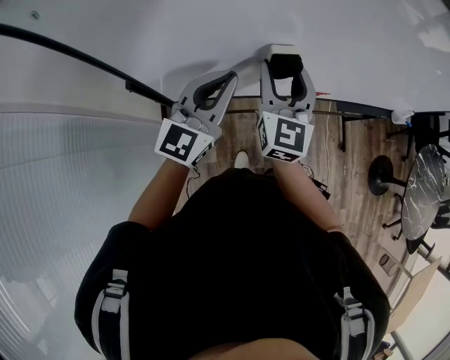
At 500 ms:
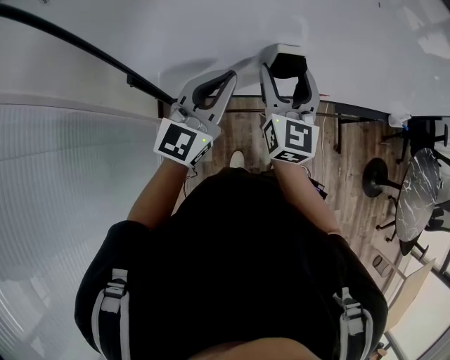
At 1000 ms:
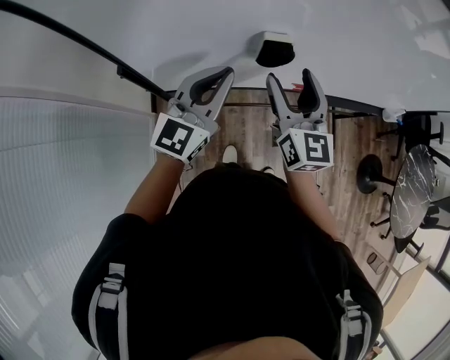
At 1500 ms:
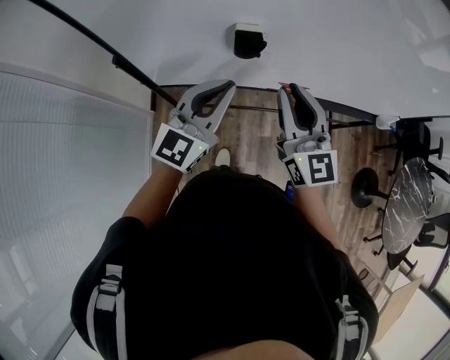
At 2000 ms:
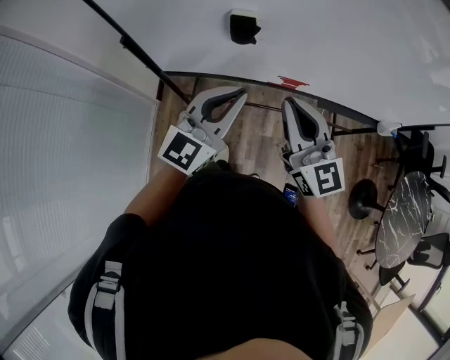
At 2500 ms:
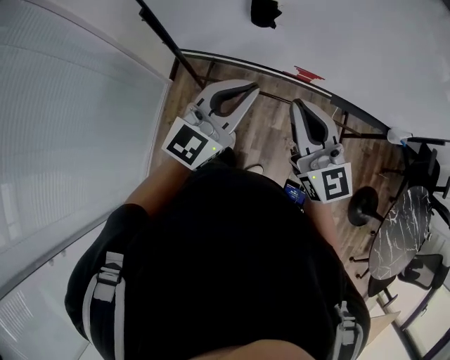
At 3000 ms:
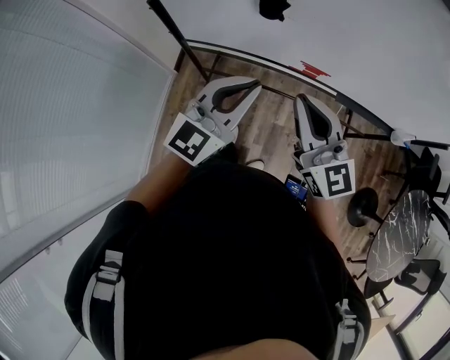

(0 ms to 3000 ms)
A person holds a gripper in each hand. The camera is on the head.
0 ms - 1500 ms: Both grippers move to the right and backward, roughly 15 cm. The right gripper swivels roughly 30 degrees, and closes its fingers.
1500 ms - 3000 ms: The left gripper moves backward and to the right, some 10 cm. The right gripper shifts some 10 cm backward, and swivels some 20 degrees.

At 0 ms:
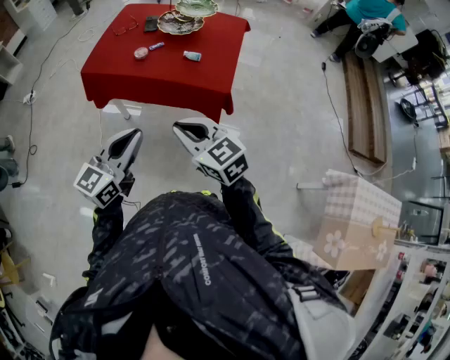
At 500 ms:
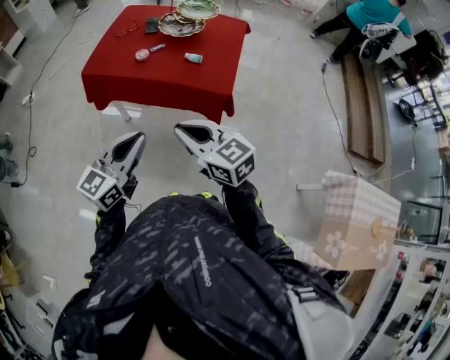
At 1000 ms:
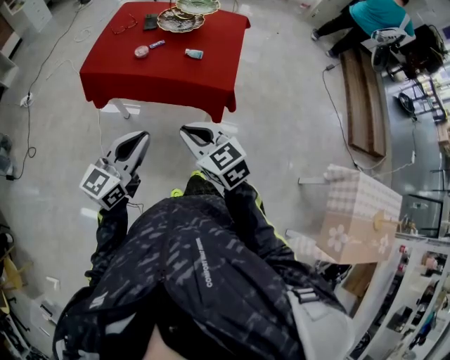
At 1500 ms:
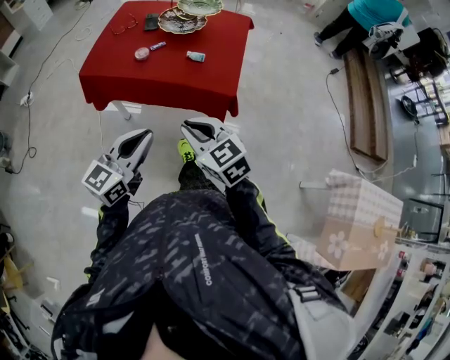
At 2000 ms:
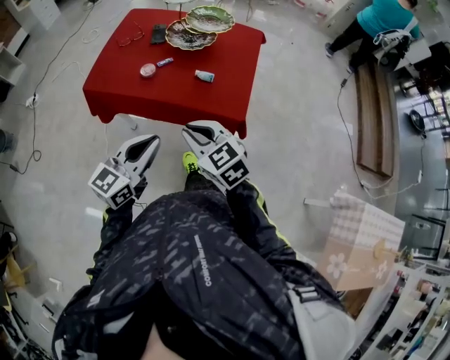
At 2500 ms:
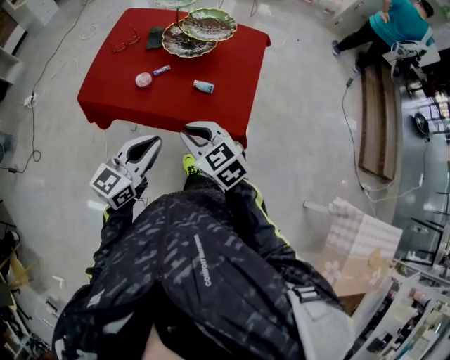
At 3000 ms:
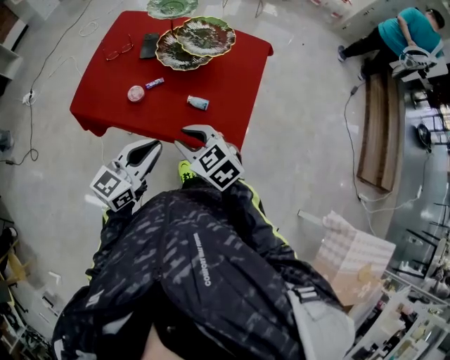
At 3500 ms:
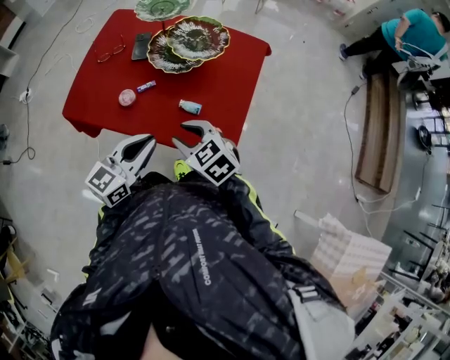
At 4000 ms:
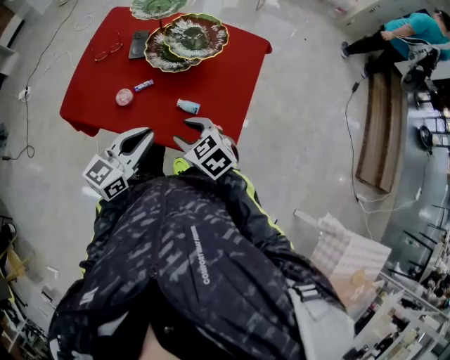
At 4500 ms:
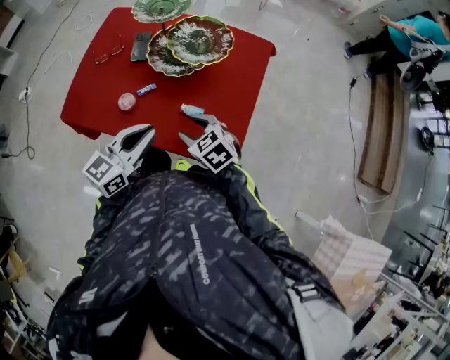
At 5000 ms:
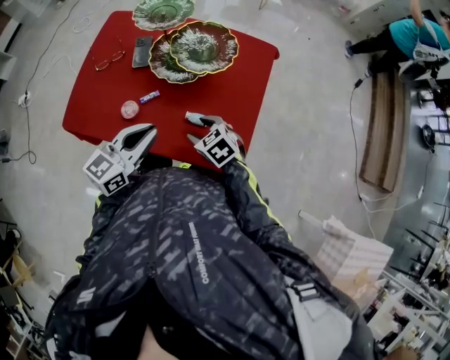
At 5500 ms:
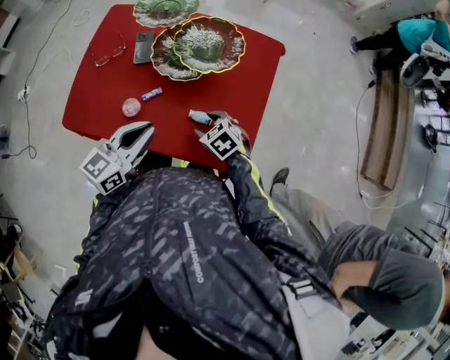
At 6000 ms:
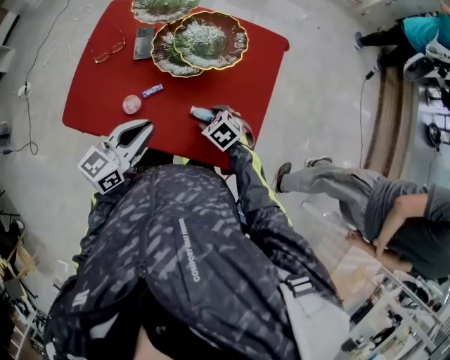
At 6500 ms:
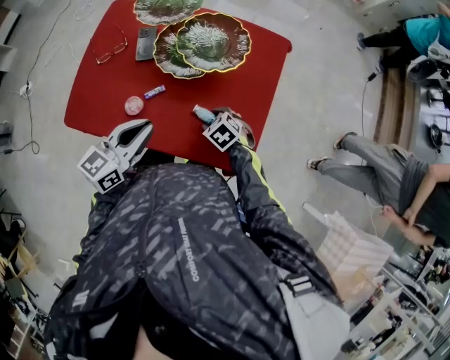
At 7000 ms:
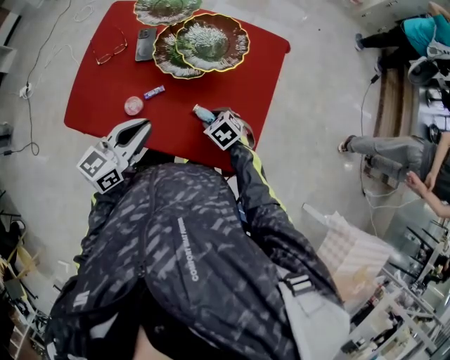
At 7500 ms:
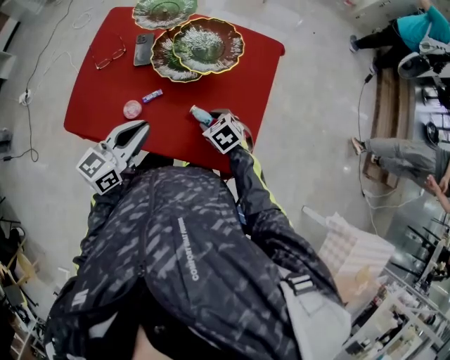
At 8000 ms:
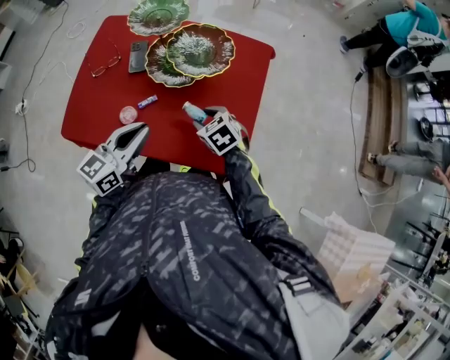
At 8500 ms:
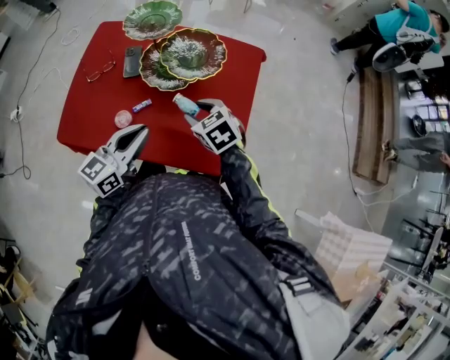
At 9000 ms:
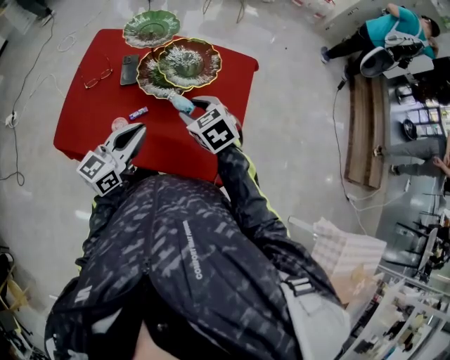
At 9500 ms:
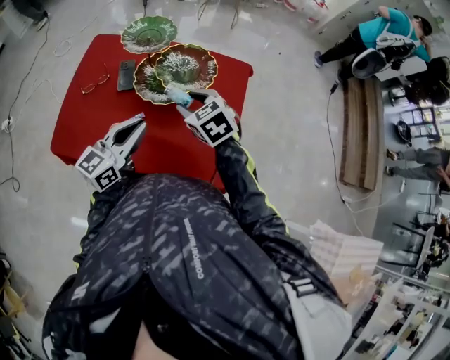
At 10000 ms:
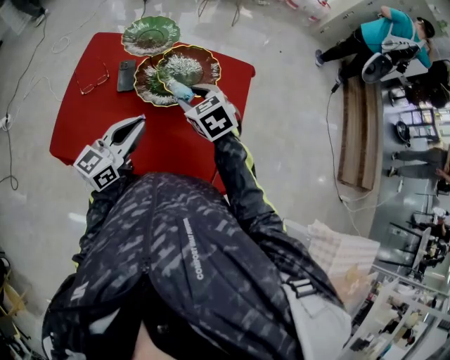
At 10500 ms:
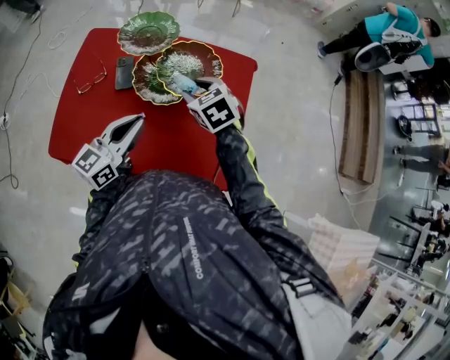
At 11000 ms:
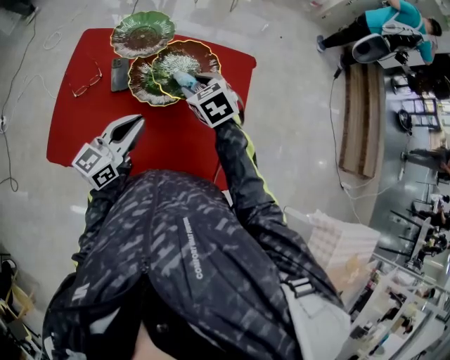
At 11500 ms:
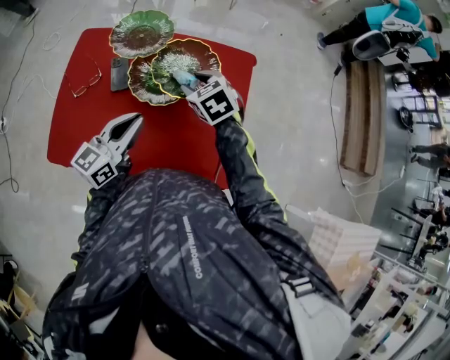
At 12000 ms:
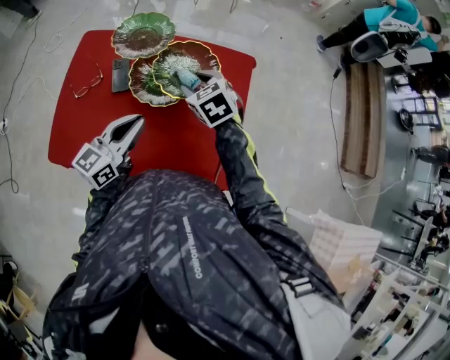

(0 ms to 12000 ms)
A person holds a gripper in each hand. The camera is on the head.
0 ms - 2000 ms: The grippers both shift forward by roughly 15 cm.
2000 ms - 4000 ms: The left gripper moves forward, approximately 25 cm; the right gripper moves forward and downward, roughly 25 cm, and opens.
4000 ms - 6000 ms: The left gripper heads forward, covering approximately 10 cm; the right gripper travels downward and forward by about 20 cm, and turns by roughly 20 degrees.
6000 ms - 8000 ms: The right gripper heads upward, covering about 10 cm.
8000 ms - 10000 ms: The left gripper is displaced forward by roughly 5 cm, while the right gripper travels upward and forward by roughly 15 cm.
10000 ms - 12000 ms: The right gripper is displaced forward by roughly 5 cm.

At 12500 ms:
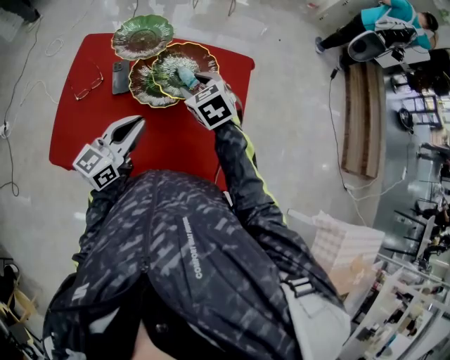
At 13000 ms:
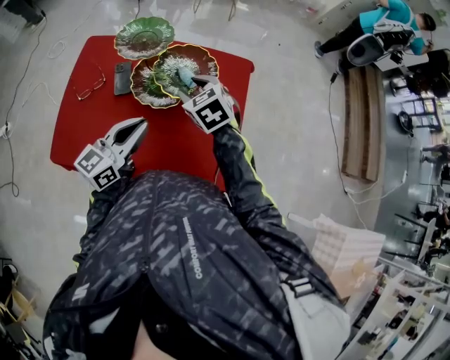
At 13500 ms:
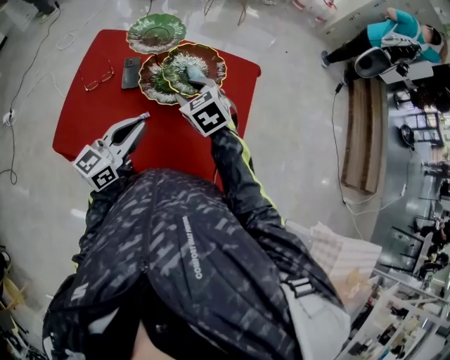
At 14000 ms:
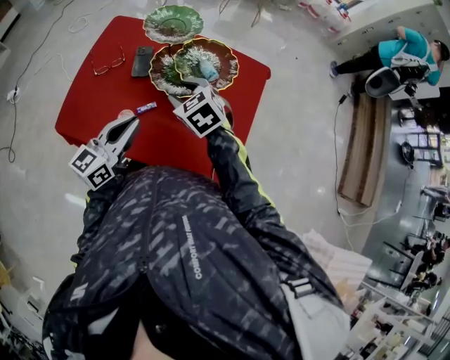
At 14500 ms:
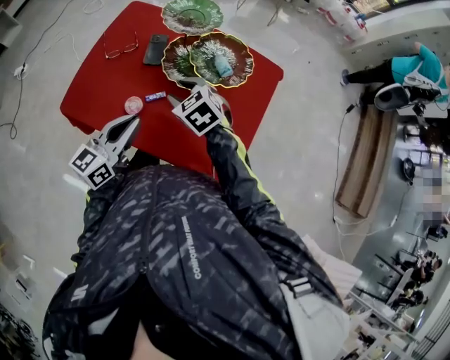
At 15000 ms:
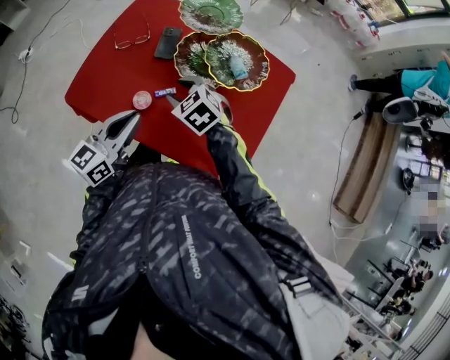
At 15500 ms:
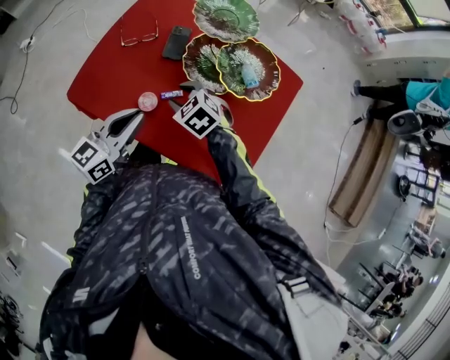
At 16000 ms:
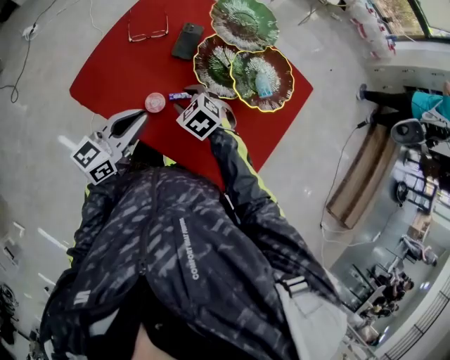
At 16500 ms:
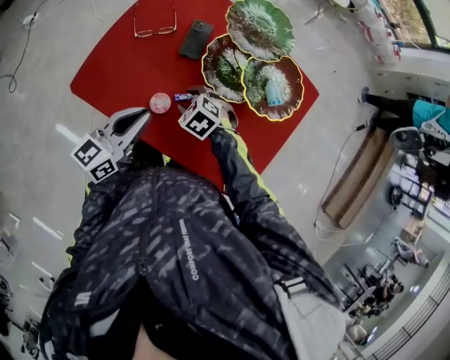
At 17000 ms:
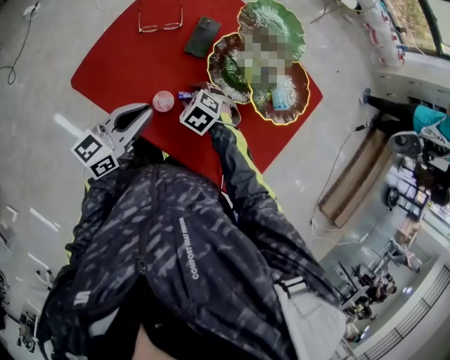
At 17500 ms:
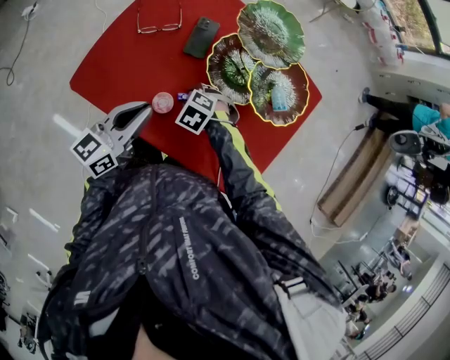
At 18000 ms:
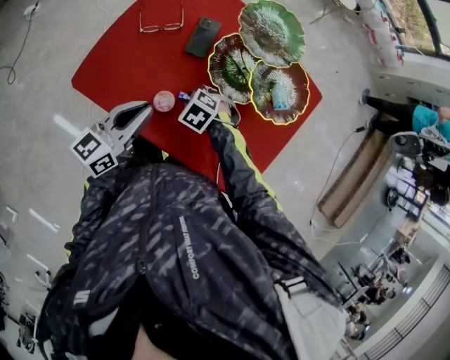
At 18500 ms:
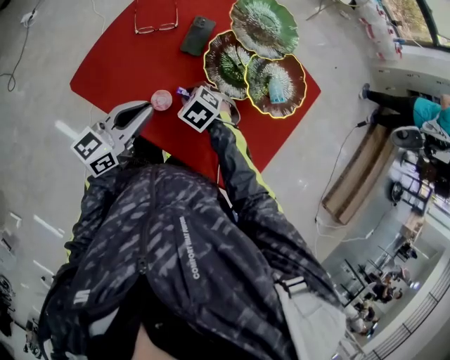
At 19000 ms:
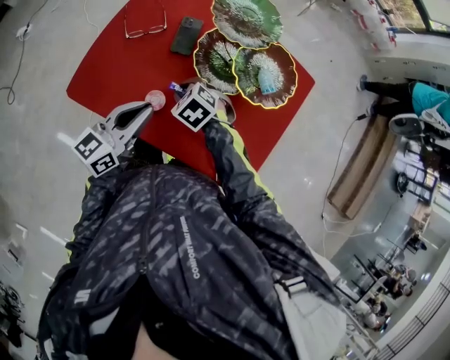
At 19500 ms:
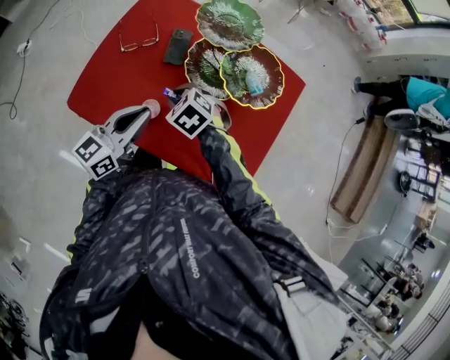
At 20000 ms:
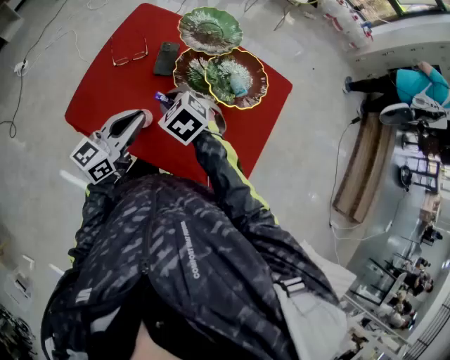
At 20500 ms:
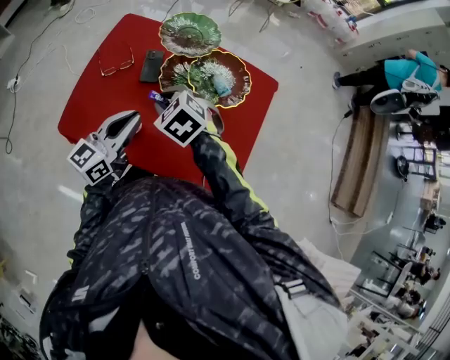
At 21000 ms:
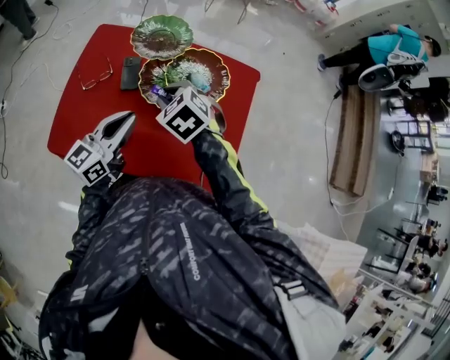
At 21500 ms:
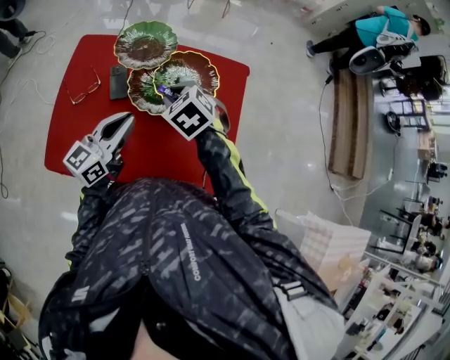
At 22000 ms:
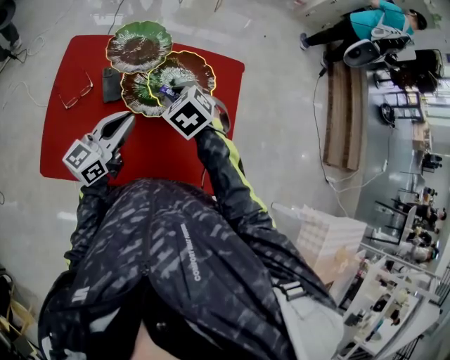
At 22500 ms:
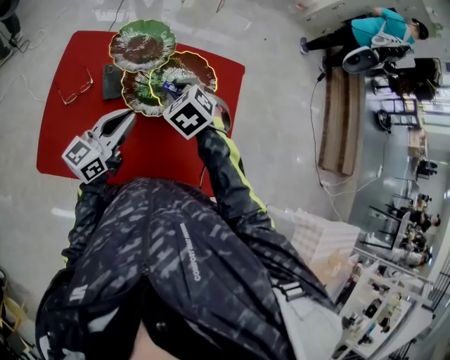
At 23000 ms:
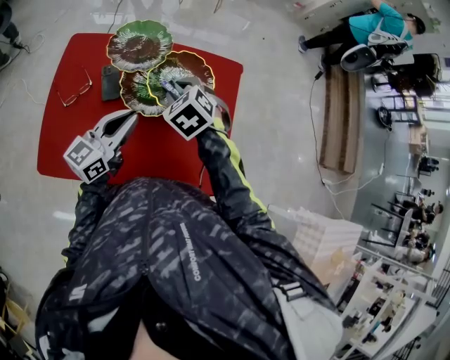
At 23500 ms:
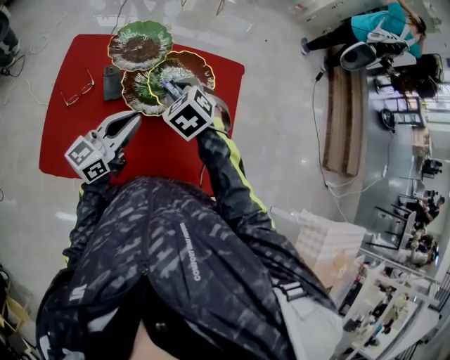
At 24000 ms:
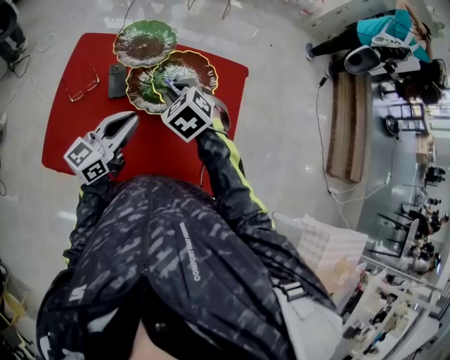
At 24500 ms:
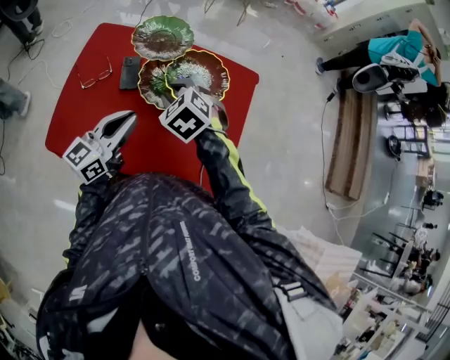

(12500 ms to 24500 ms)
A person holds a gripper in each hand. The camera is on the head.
12500 ms - 14500 ms: The right gripper moves to the left and backward, some 15 cm, and changes its angle by some 20 degrees. The left gripper shifts roughly 10 cm backward and to the left.
14500 ms - 16500 ms: The right gripper heads downward and to the left, covering approximately 20 cm, and turns by approximately 30 degrees, while the left gripper heads to the left, forward and downward, covering some 10 cm.
16500 ms - 18500 ms: The grippers move only a little.
18500 ms - 20500 ms: The left gripper goes roughly 10 cm to the right and upward. Meanwhile the right gripper shifts approximately 20 cm upward, and changes its angle by about 20 degrees.
20500 ms - 22500 ms: The right gripper travels to the right and forward by approximately 15 cm, and rotates roughly 20 degrees; the left gripper goes roughly 10 cm forward and to the right.
22500 ms - 24500 ms: The two grippers go about 5 cm backward.
